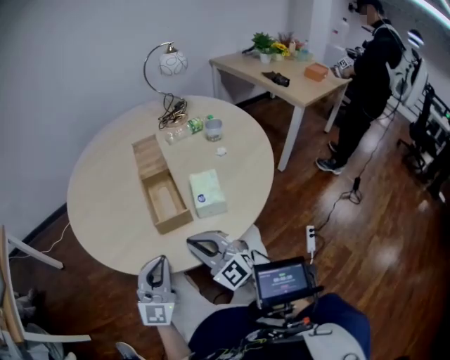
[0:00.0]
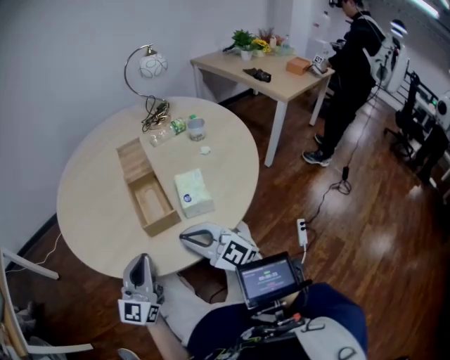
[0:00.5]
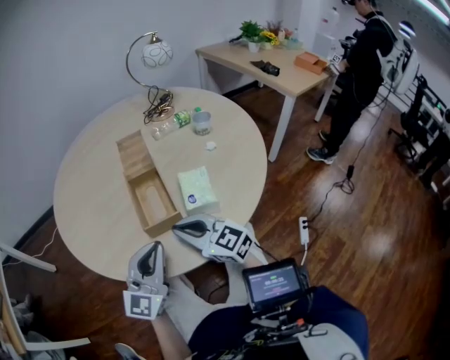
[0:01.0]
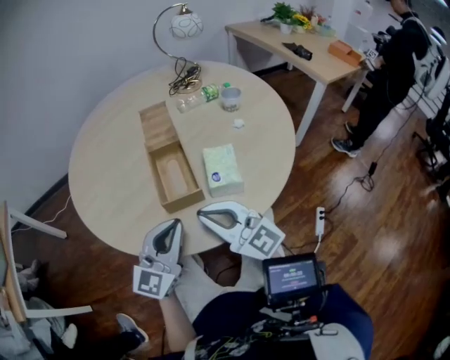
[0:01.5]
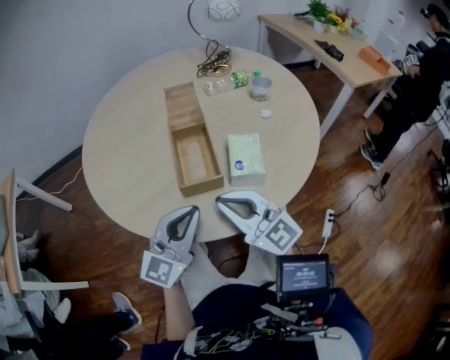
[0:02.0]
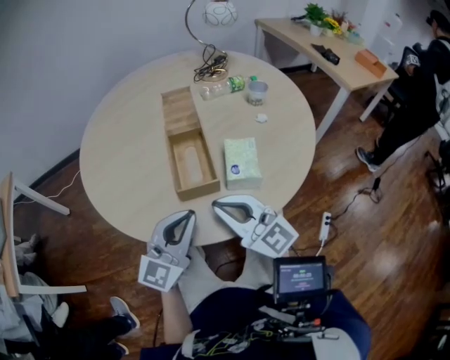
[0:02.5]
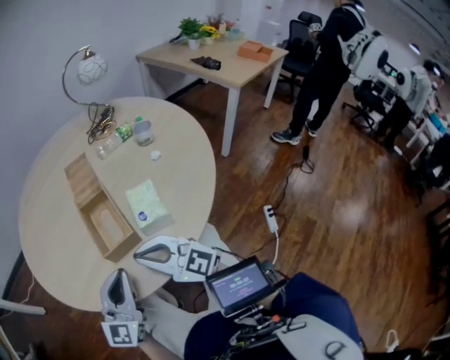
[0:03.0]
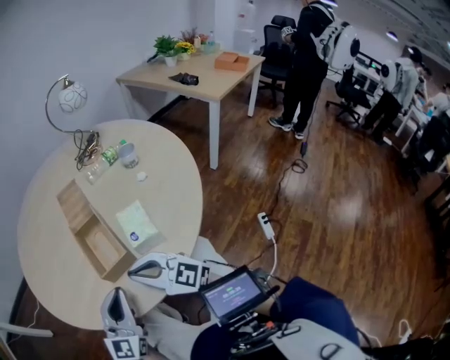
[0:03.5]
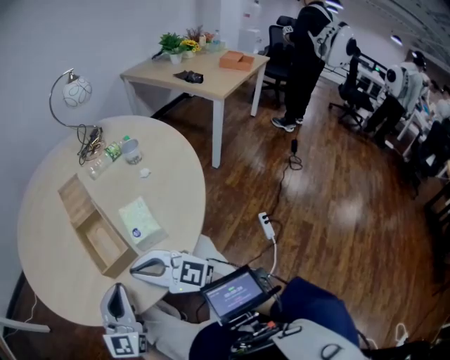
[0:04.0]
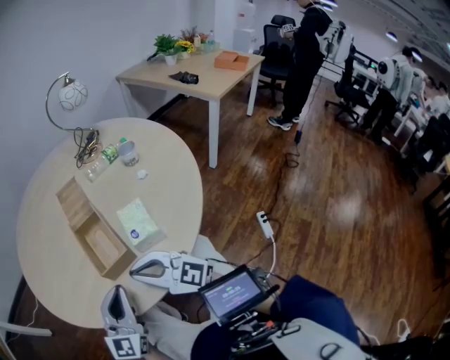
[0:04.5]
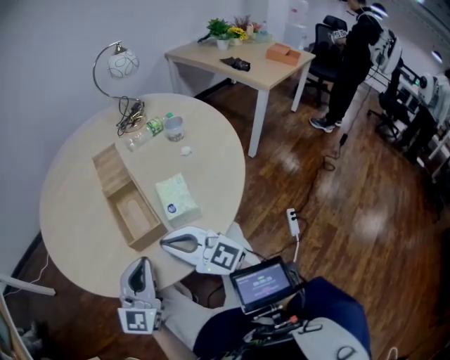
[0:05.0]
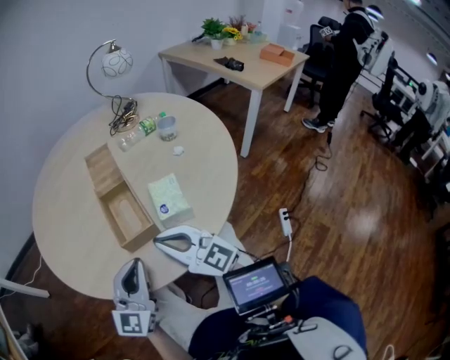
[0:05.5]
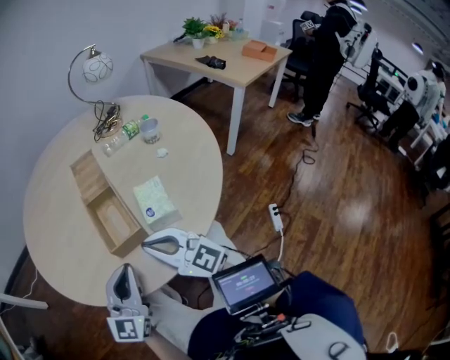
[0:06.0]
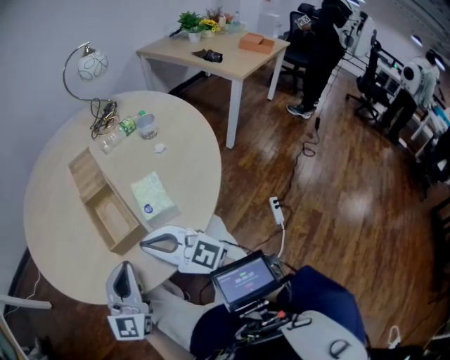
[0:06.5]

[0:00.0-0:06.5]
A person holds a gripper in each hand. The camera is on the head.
0:00.0 to 0:02.0: The right gripper swings up and down, roughly 5 cm each way, with 2 reversals, and swivels approximately 20 degrees; the left gripper changes place by some 5 cm.
0:02.0 to 0:06.5: The grippers stay close to where they were, moving slightly.

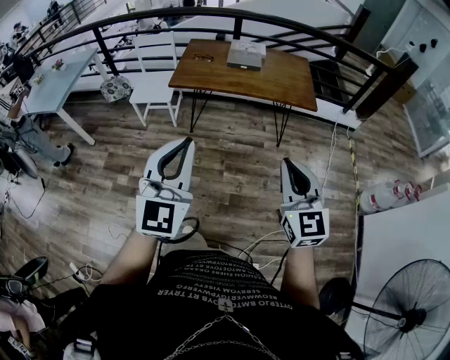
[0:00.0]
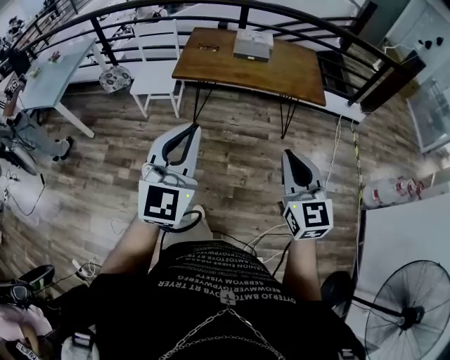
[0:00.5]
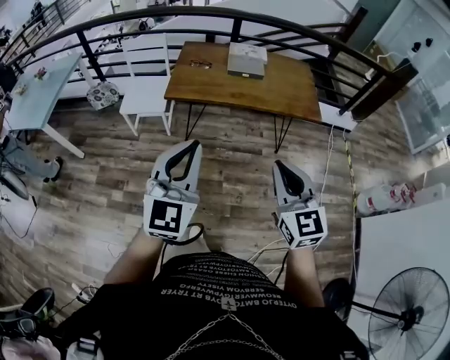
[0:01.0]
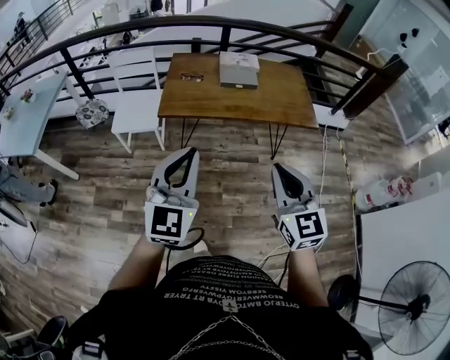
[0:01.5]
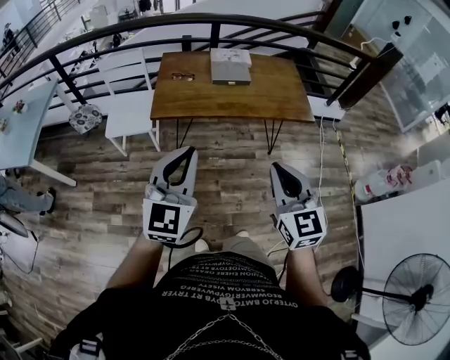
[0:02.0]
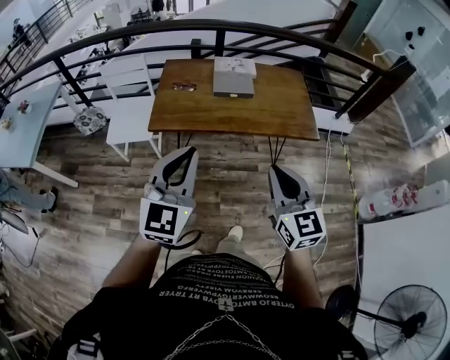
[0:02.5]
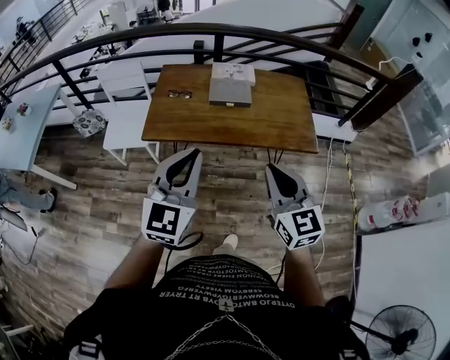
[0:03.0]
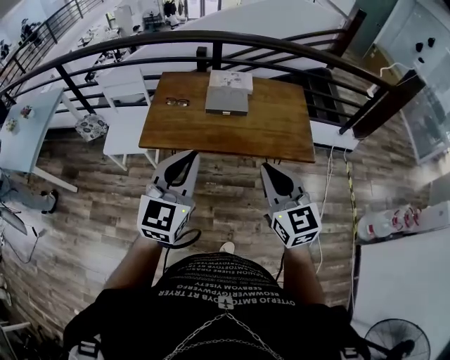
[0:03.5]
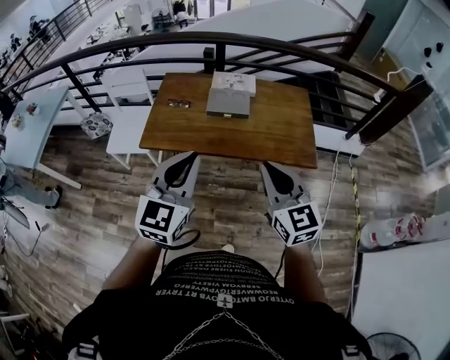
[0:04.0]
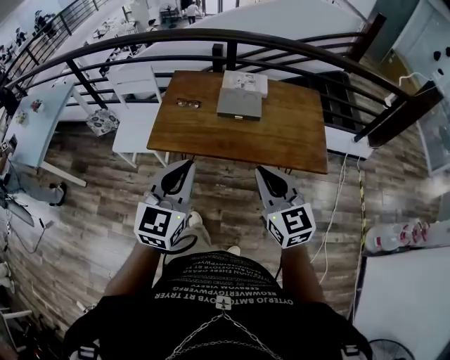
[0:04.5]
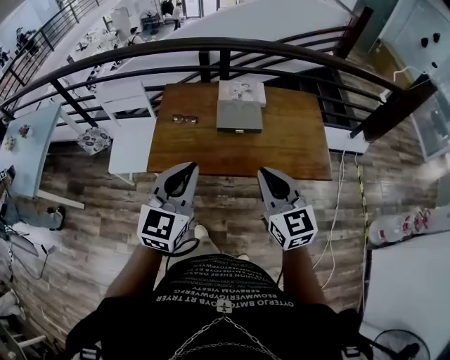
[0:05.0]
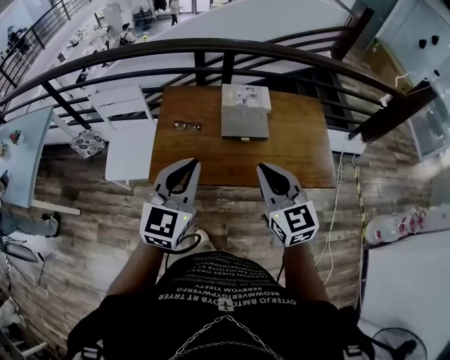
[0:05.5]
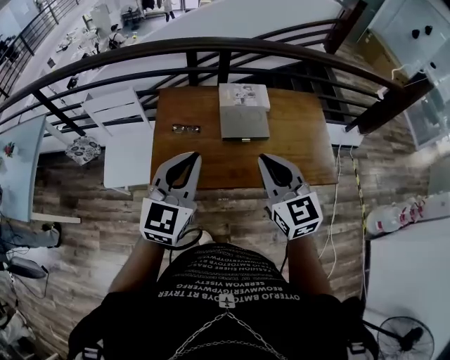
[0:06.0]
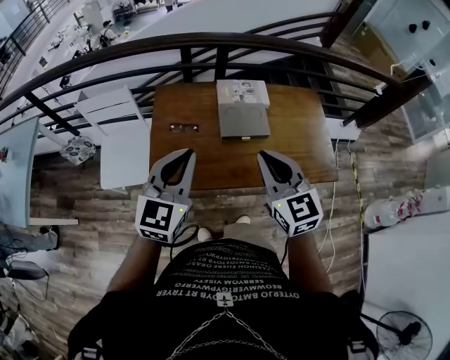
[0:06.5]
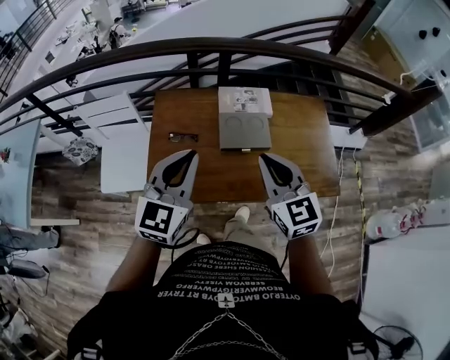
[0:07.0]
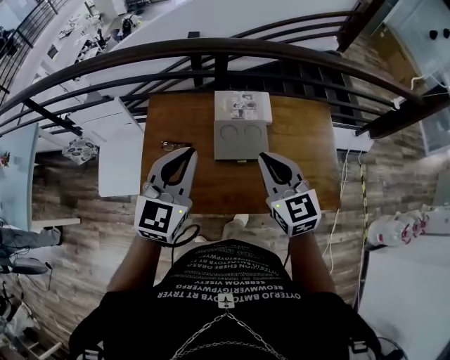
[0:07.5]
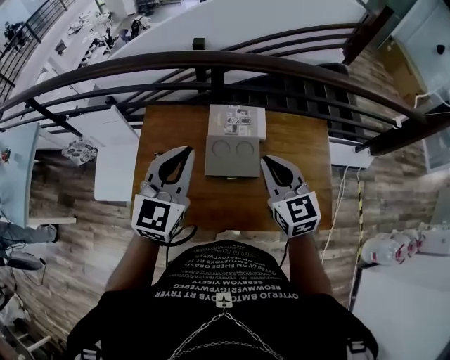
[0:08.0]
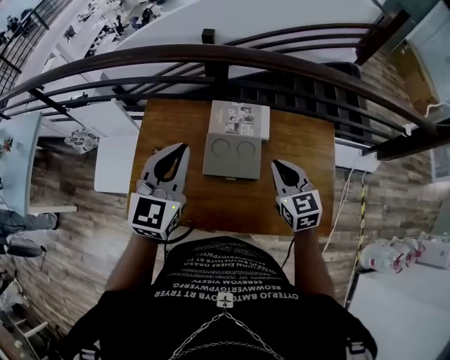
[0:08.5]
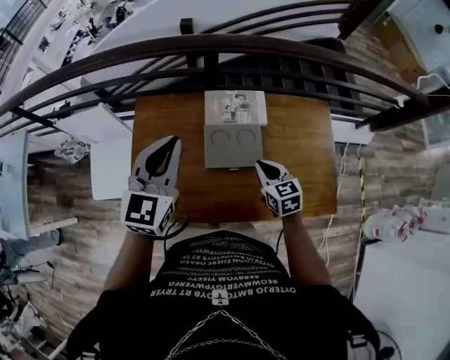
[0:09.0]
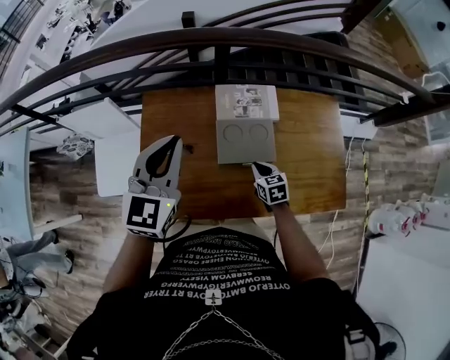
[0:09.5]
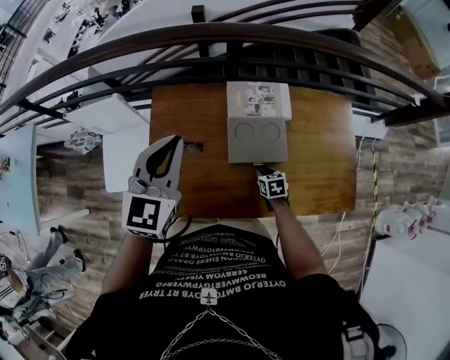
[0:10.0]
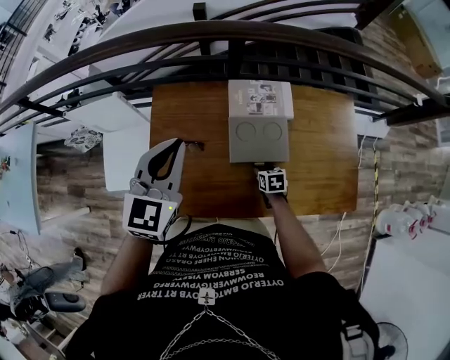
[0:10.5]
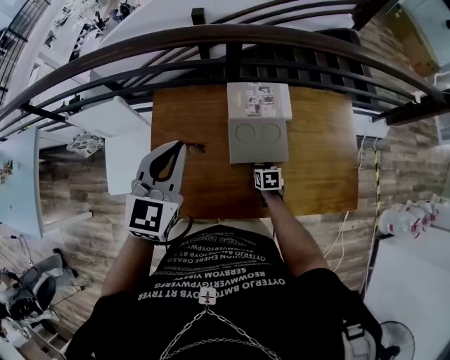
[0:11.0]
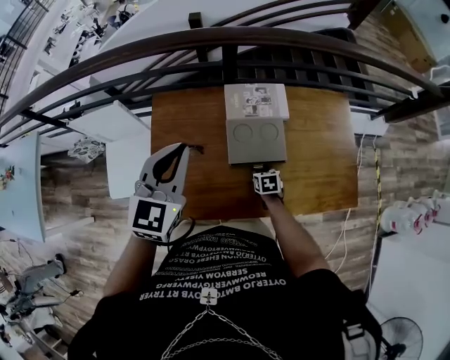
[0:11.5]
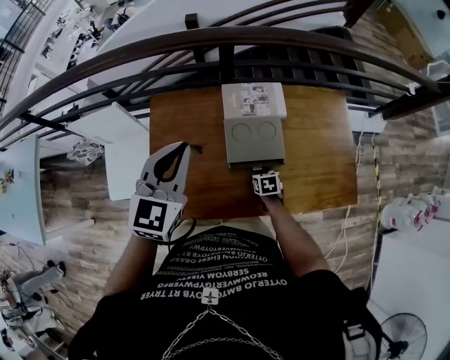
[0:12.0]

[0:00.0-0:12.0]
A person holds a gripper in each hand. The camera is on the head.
0:00.0 to 0:02.0: The two grippers go approximately 30 cm forward and to the left.
0:02.0 to 0:04.0: The grippers both shift forward and to the right by some 30 cm.
0:04.0 to 0:06.0: Both grippers move forward and to the left, about 30 cm.
0:06.0 to 0:08.0: Both grippers travel together forward and to the right, approximately 30 cm.
0:08.0 to 0:10.0: The left gripper is displaced to the left and forward by approximately 15 cm. The right gripper shifts roughly 40 cm downward, and points its fingers some 40 degrees further downward.
0:10.0 to 0:12.0: There are only small adjustments of the grippers.

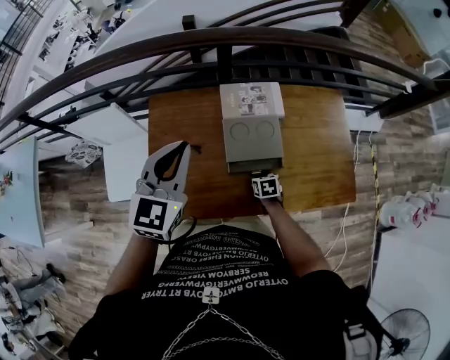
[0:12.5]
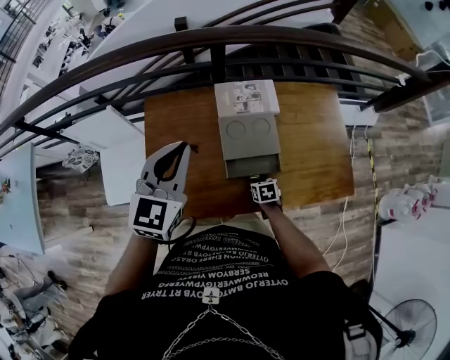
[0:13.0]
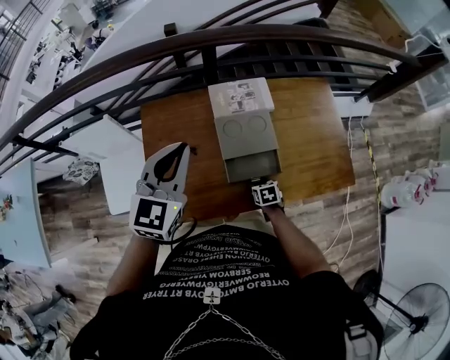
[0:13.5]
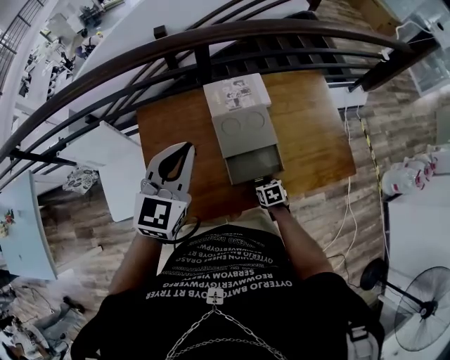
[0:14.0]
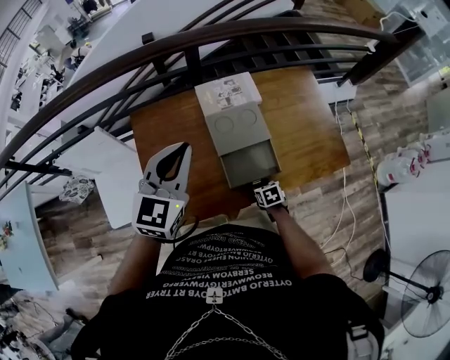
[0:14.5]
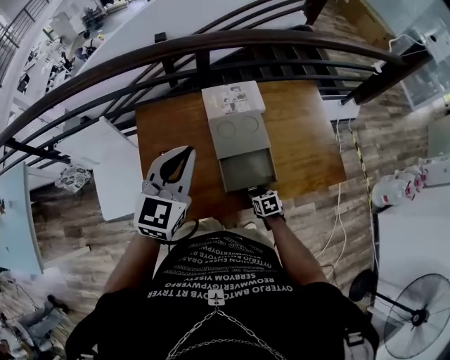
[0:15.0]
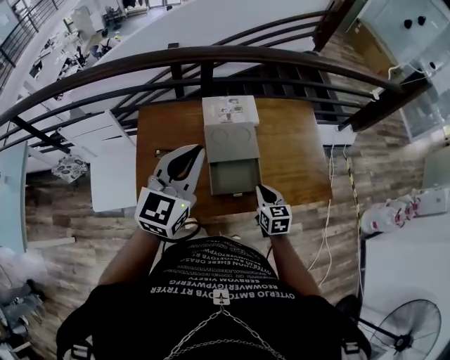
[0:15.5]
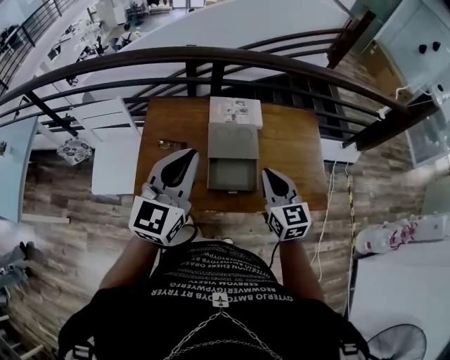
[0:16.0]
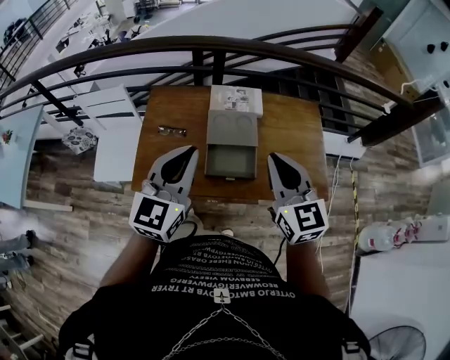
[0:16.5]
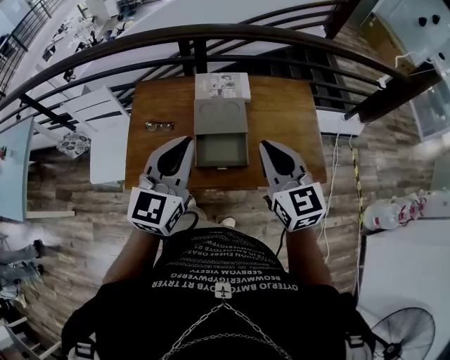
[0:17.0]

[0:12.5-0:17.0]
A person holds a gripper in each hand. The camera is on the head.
0:12.5 to 0:14.5: The right gripper moves backward, about 10 cm.
0:14.5 to 0:17.0: The right gripper heads upward, covering approximately 50 cm, points its fingers roughly 50 degrees further upward, and closes its fingers; the left gripper heads backward and to the right, covering about 20 cm.

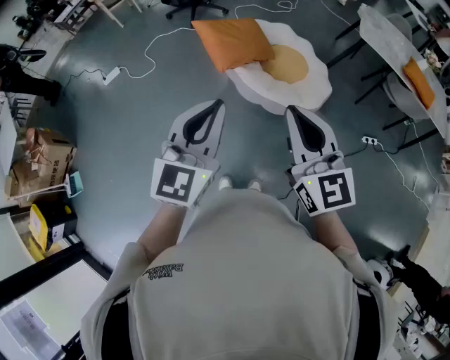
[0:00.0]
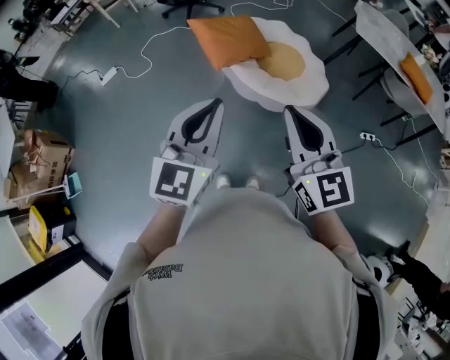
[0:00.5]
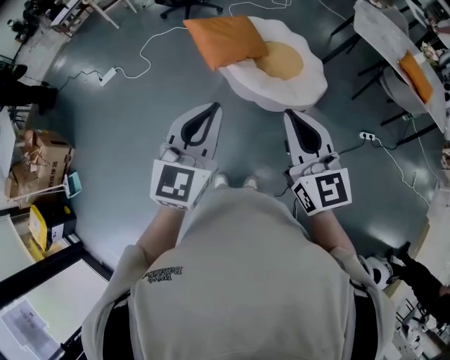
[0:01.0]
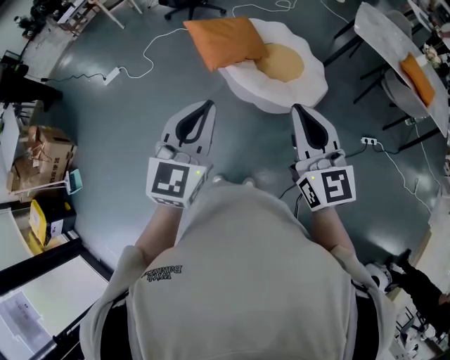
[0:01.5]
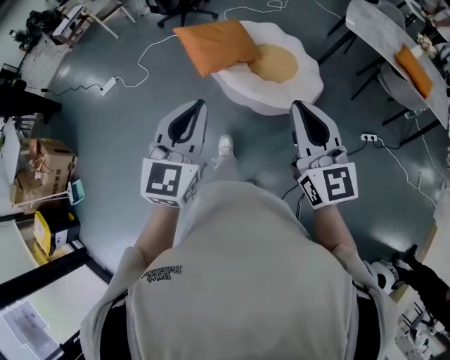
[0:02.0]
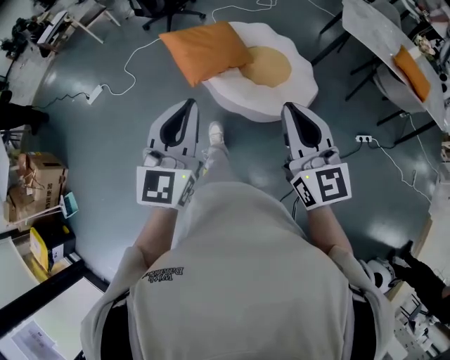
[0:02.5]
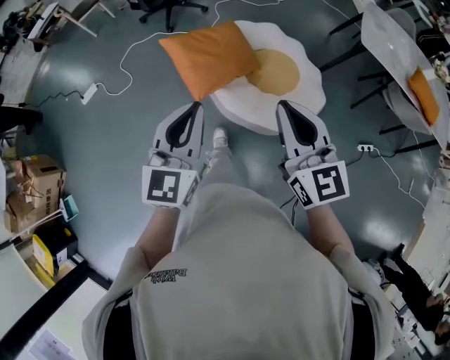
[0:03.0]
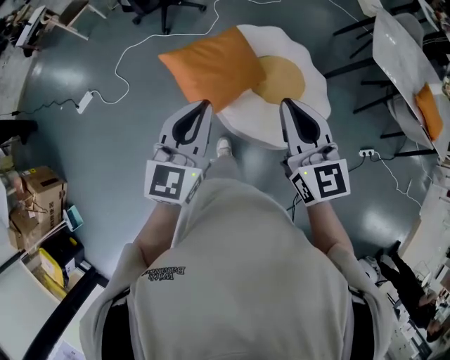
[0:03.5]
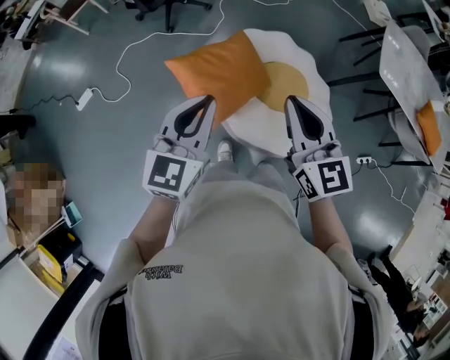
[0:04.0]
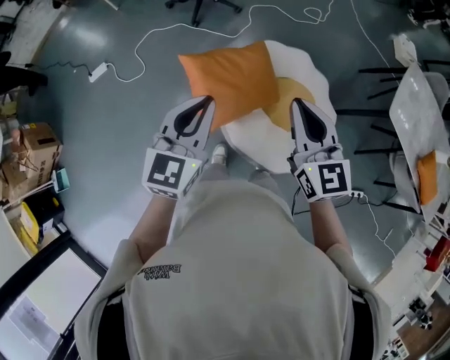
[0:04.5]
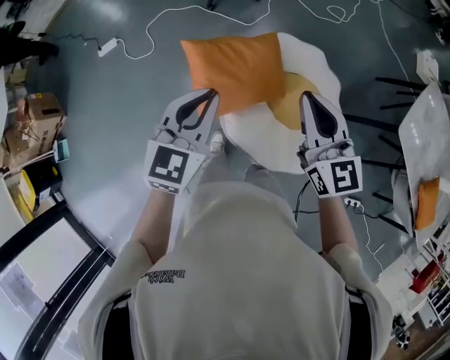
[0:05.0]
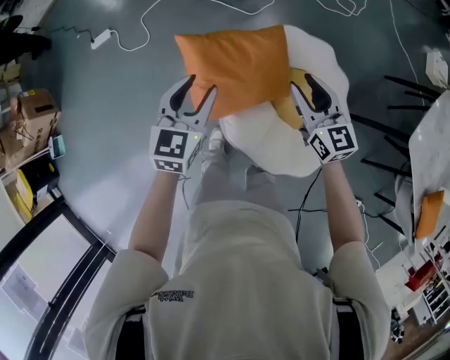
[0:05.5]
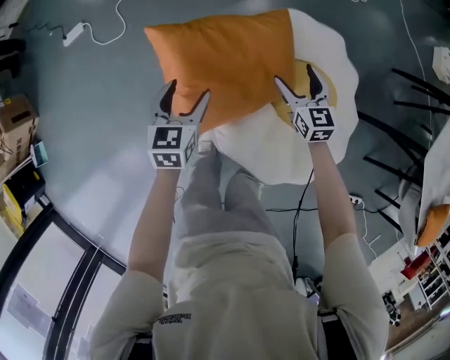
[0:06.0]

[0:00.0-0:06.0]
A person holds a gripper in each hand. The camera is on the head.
0:00.0 to 0:02.0: The right gripper goes about 15 cm to the right, while the left gripper goes roughly 10 cm to the right.
0:02.0 to 0:04.0: Both grippers are carried forward, approximately 50 cm.
0:04.0 to 0:06.0: The two grippers go roughly 40 cm downward. The left gripper changes its angle by about 40 degrees, and opens; the right gripper changes its angle by approximately 30 degrees, and opens its fingers.
